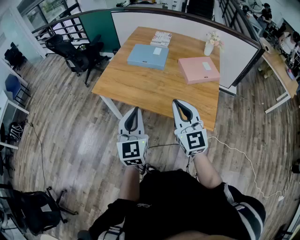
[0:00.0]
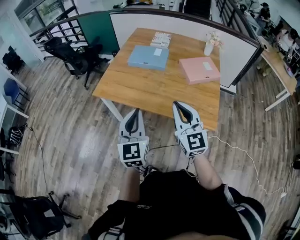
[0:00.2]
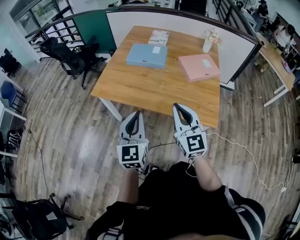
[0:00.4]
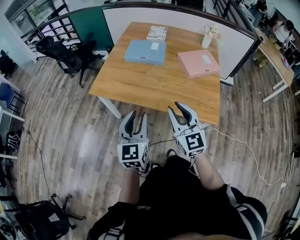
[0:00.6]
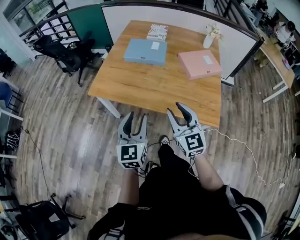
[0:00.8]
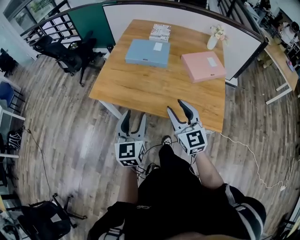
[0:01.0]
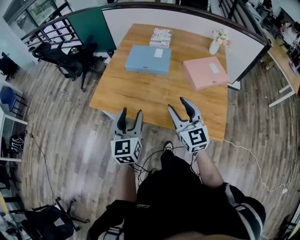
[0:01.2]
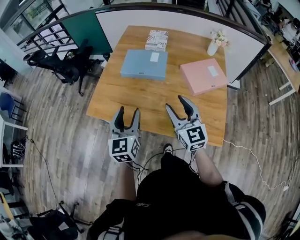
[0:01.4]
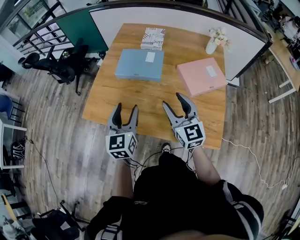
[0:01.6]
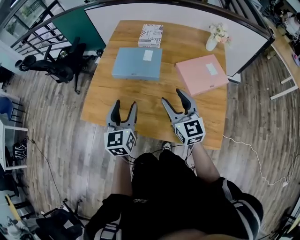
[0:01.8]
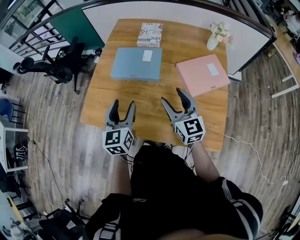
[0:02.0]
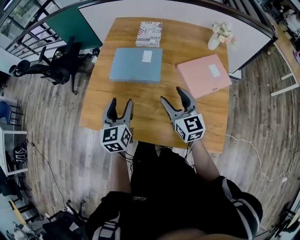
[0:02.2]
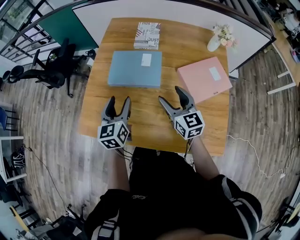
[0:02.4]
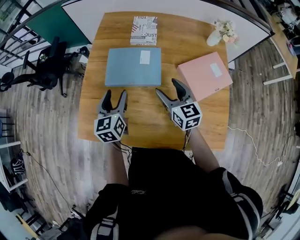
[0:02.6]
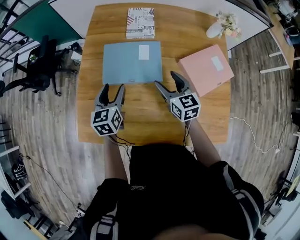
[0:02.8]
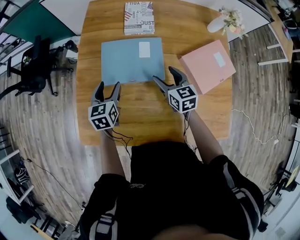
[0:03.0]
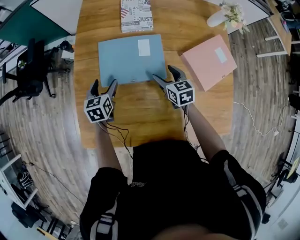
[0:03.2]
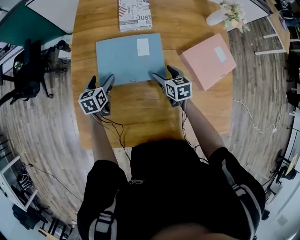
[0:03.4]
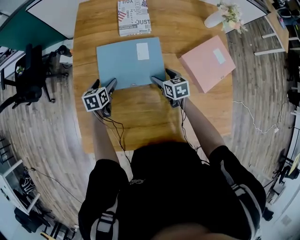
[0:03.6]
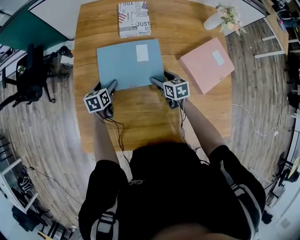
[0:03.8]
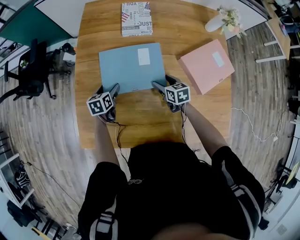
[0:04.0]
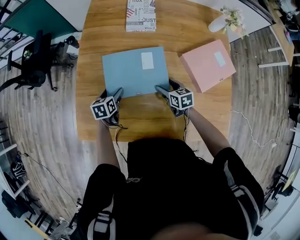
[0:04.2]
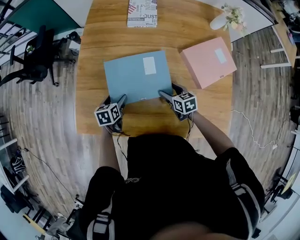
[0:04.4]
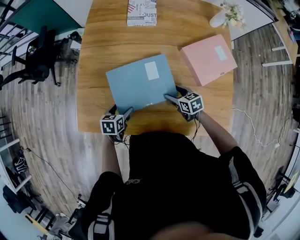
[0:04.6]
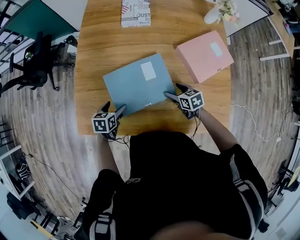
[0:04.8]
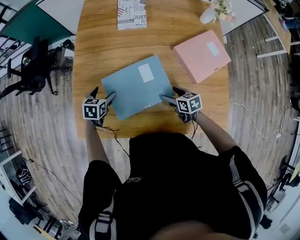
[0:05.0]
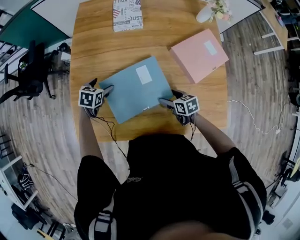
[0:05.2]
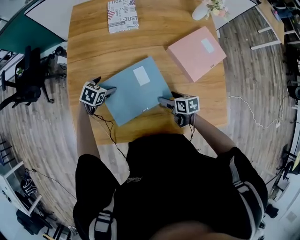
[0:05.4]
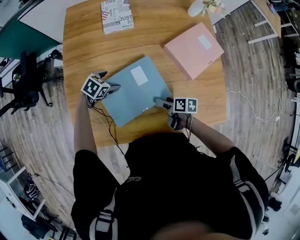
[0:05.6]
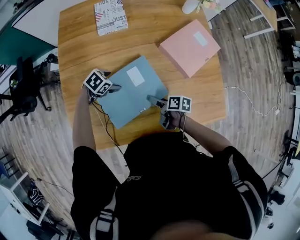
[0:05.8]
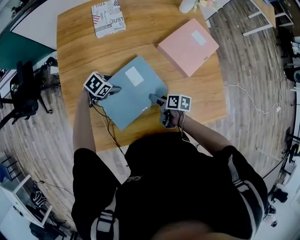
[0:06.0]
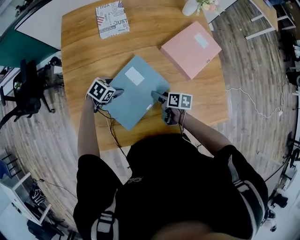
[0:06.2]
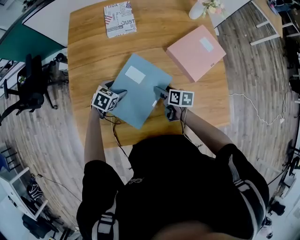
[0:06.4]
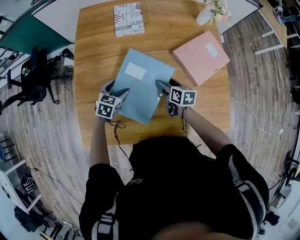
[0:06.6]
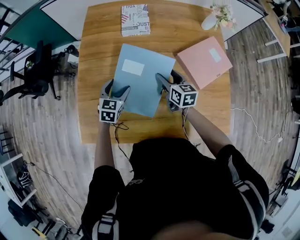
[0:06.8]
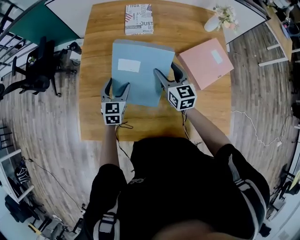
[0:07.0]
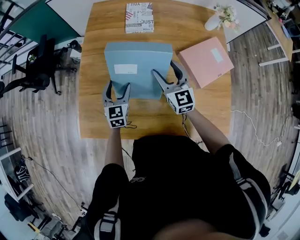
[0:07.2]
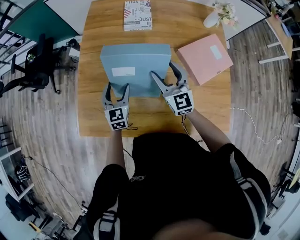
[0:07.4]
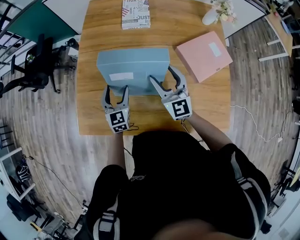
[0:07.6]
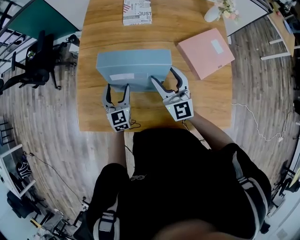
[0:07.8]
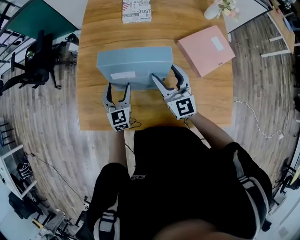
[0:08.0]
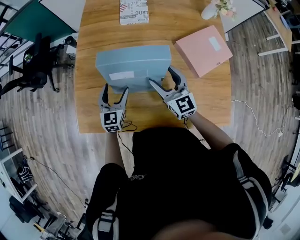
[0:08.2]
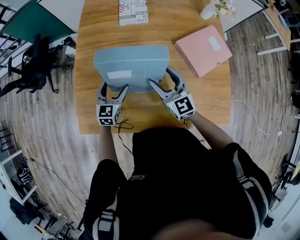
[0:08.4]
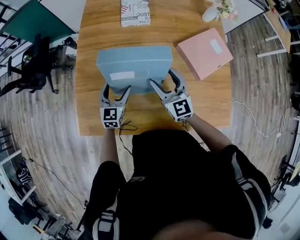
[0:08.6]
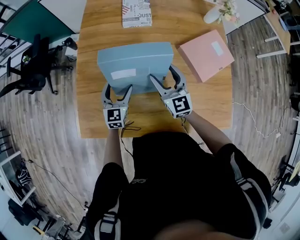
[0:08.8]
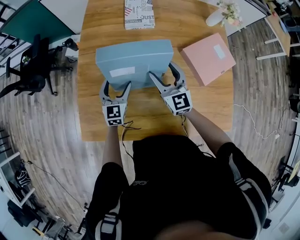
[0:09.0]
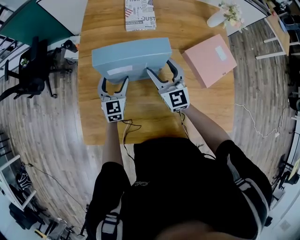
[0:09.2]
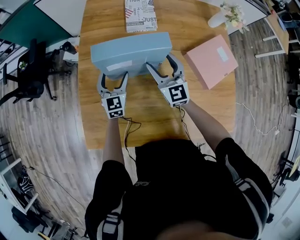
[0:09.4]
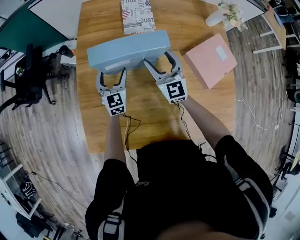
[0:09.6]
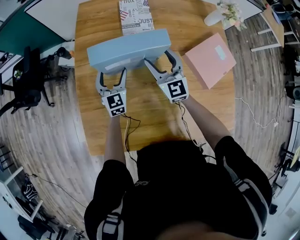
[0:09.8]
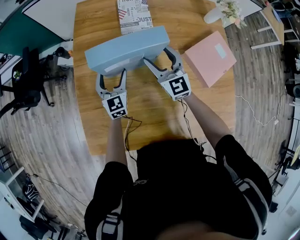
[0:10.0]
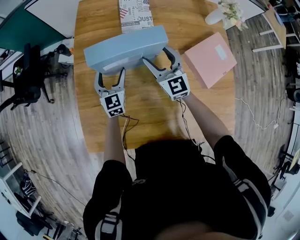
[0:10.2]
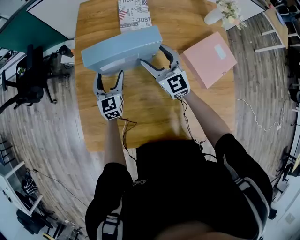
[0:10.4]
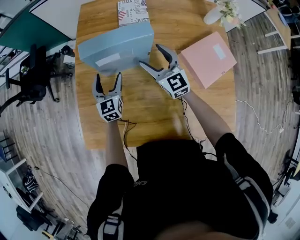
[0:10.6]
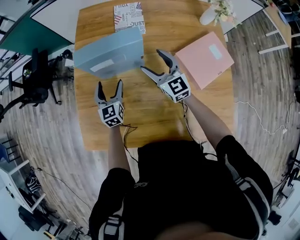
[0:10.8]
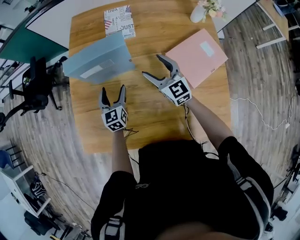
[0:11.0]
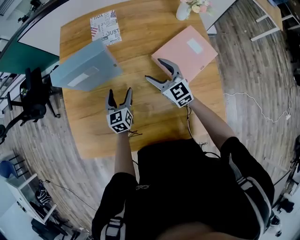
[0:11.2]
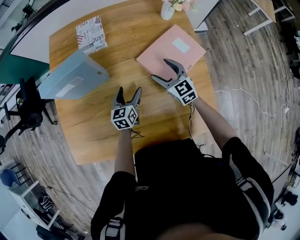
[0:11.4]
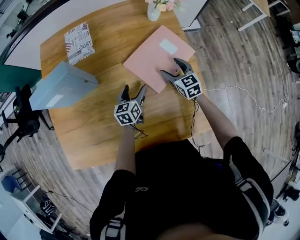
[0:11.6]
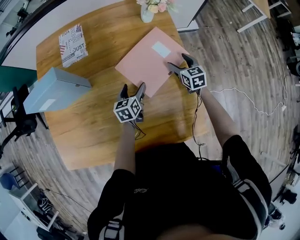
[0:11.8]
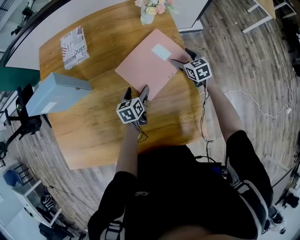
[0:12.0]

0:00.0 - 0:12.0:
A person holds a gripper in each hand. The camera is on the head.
0:00.0 - 0:01.6: Both grippers move forward, roughly 25 cm. The right gripper opens. Meanwhile the left gripper opens its fingers.
0:01.6 - 0:03.0: The two grippers go approximately 35 cm forward and downward. The right gripper rotates some 30 degrees; the left gripper turns by about 30 degrees.
0:03.0 - 0:04.4: Both grippers travel together downward and backward, roughly 15 cm. The right gripper swivels approximately 20 degrees. The left gripper turns by approximately 20 degrees.
0:04.4 - 0:06.0: The left gripper moves about 15 cm, and turns by approximately 70 degrees; the right gripper shifts by approximately 5 cm, and rolls clockwise, seen from behind, by roughly 50 degrees.
0:06.0 - 0:07.6: The left gripper heads upward, covering roughly 10 cm, and tilts its fingers approximately 40 degrees upward; the right gripper is displaced upward by some 25 cm, and rolls counterclockwise, seen from behind, by some 80 degrees.
0:07.6 - 0:09.0: The two grippers go approximately 5 cm forward.
0:09.0 - 0:10.4: The grippers both shift forward by some 10 cm.
0:10.4 - 0:12.0: The two grippers travel together, to the right, roughly 50 cm. The right gripper tilts its fingers about 30 degrees downward; the left gripper changes its angle by approximately 40 degrees.

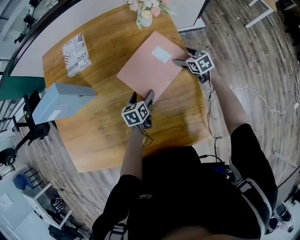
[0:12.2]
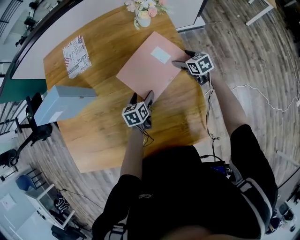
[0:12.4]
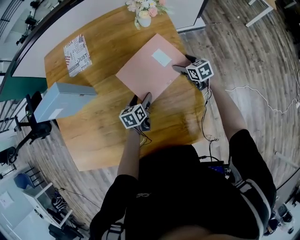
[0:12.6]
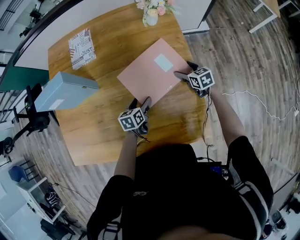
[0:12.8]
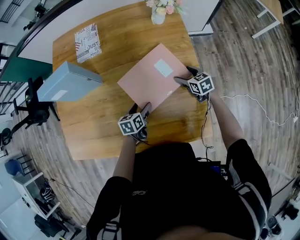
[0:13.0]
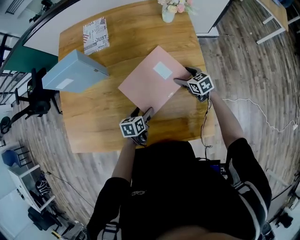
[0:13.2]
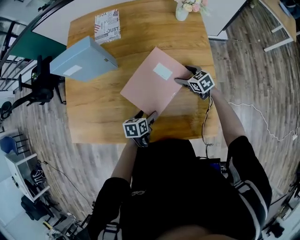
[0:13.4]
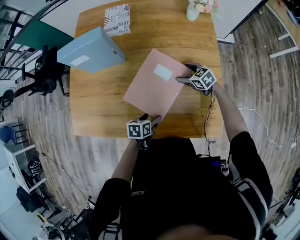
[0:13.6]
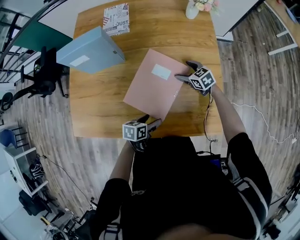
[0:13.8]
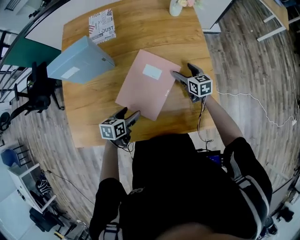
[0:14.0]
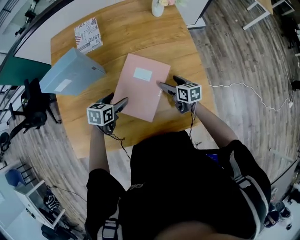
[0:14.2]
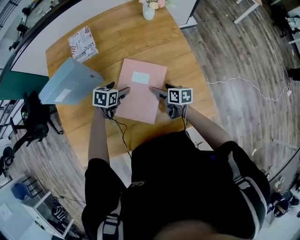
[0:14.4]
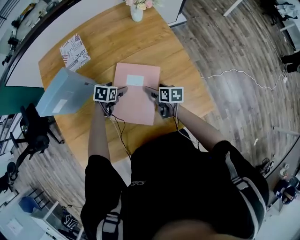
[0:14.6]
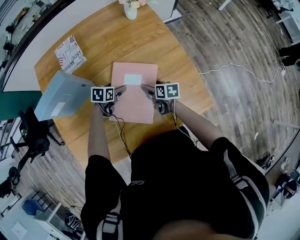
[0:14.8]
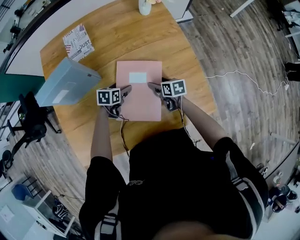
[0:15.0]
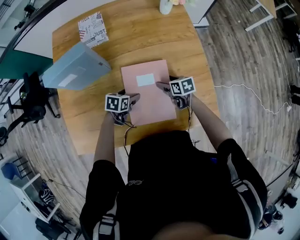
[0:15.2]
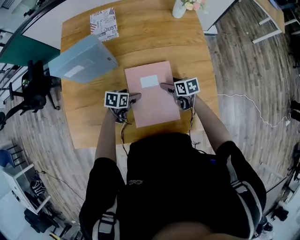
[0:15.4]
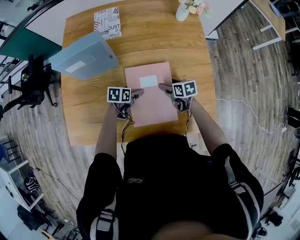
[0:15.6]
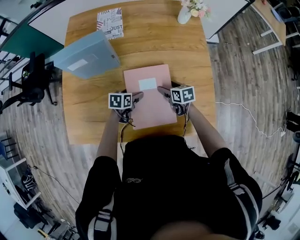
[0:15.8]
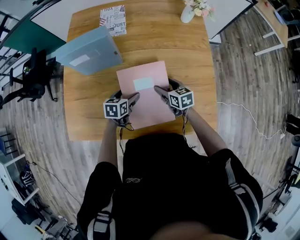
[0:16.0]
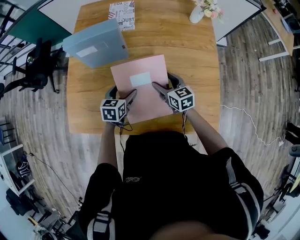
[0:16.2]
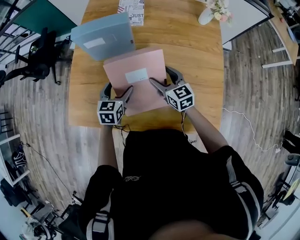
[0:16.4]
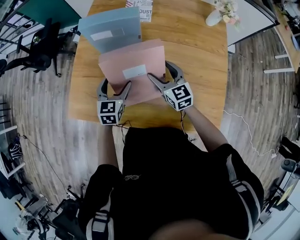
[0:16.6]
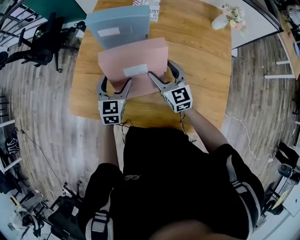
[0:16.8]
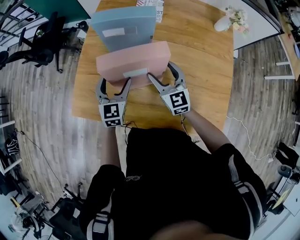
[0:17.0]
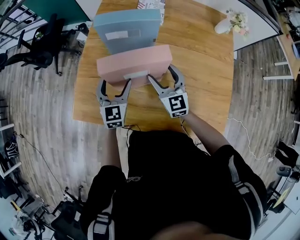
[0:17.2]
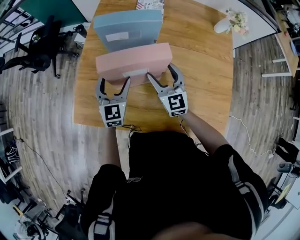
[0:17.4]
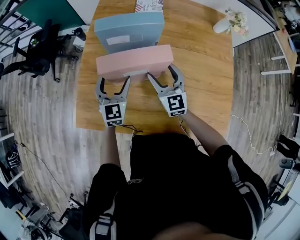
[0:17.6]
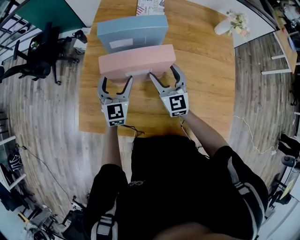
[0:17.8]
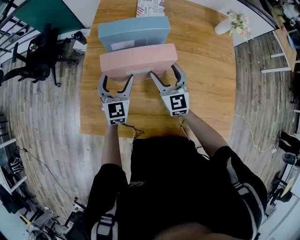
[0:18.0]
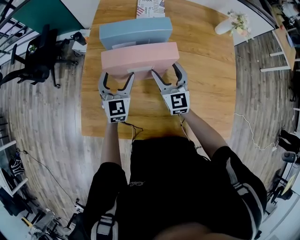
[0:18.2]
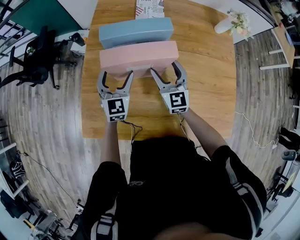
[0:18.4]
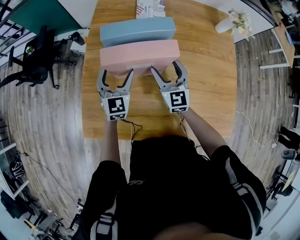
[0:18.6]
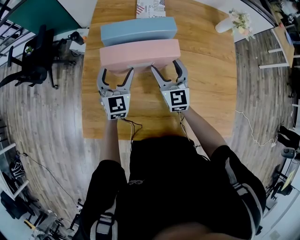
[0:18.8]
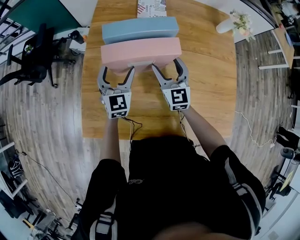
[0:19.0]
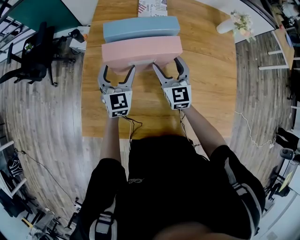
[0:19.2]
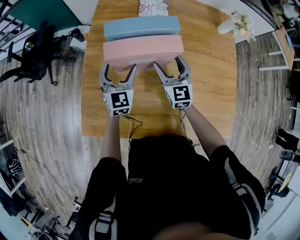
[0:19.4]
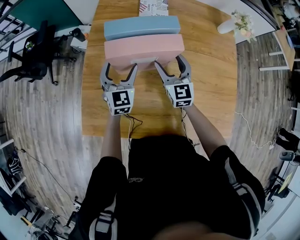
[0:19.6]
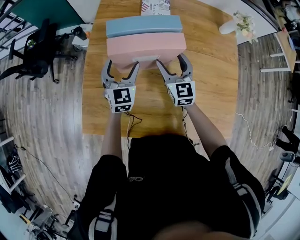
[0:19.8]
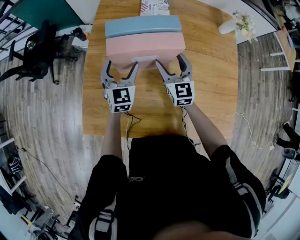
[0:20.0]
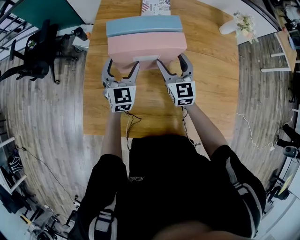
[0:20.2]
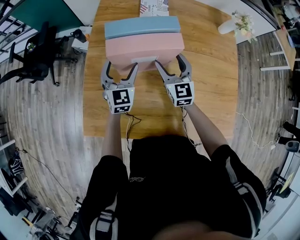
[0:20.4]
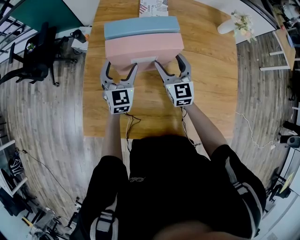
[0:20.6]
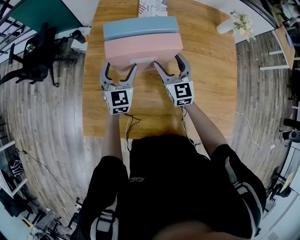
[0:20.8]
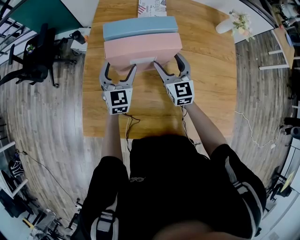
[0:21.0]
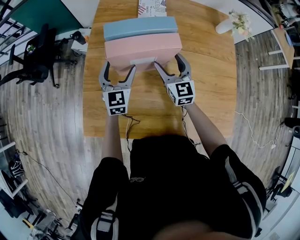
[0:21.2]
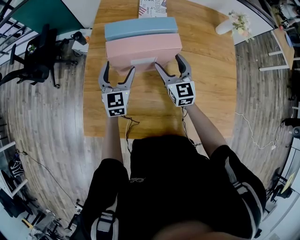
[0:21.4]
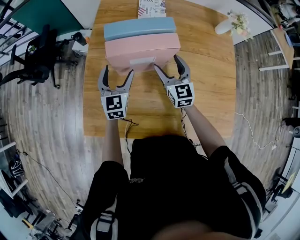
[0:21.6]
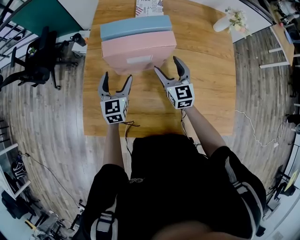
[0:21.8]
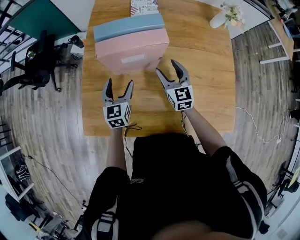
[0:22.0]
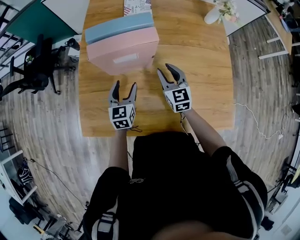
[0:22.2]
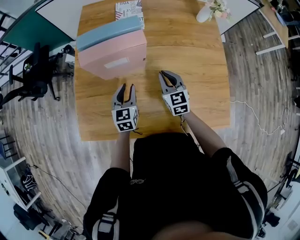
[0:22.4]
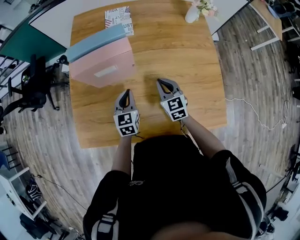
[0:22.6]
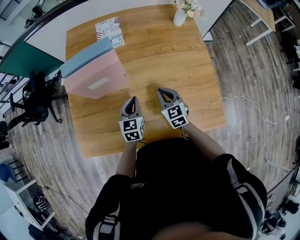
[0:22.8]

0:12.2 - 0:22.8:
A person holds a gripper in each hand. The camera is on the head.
0:12.2 - 0:13.8: The right gripper is displaced to the left and backward by approximately 25 cm, and turns by approximately 20 degrees, while the left gripper shifts about 25 cm backward and to the left, and swivels some 20 degrees.
0:13.8 - 0:15.2: The right gripper shifts approximately 5 cm backward, and changes its angle by approximately 40 degrees. Meanwhile the left gripper travels forward and to the left by about 15 cm, and swivels roughly 20 degrees.
0:15.2 - 0:16.8: The right gripper ends up some 25 cm from where it was, and tips its fingers upward by about 30 degrees. The left gripper changes place by about 25 cm, and tips its fingers upward by about 30 degrees.
0:16.8 - 0:18.2: The two grippers go about 10 cm forward and to the left.
0:18.2 - 0:19.8: The grippers make only small movements.
0:19.8 - 0:21.2: Neither gripper changes place.
0:21.2 - 0:22.8: The left gripper is displaced to the right and backward by about 25 cm, rotates roughly 20 degrees, and closes its fingers; the right gripper goes about 20 cm to the right, backward and downward, and closes its fingers.

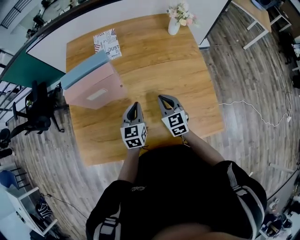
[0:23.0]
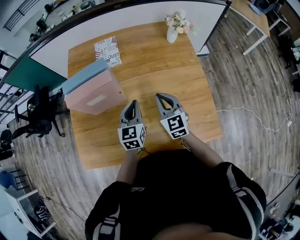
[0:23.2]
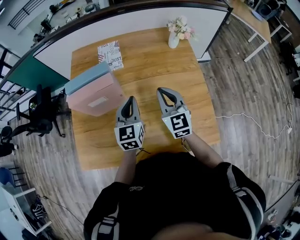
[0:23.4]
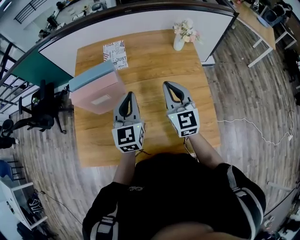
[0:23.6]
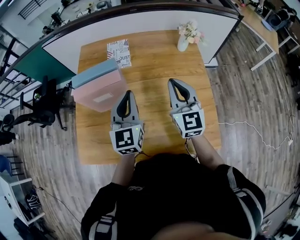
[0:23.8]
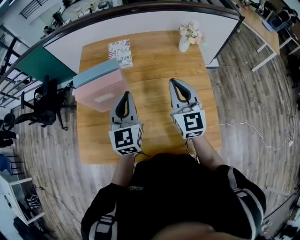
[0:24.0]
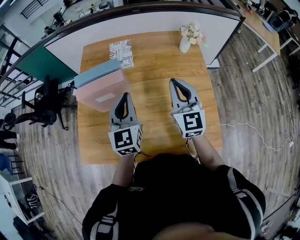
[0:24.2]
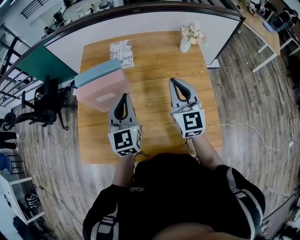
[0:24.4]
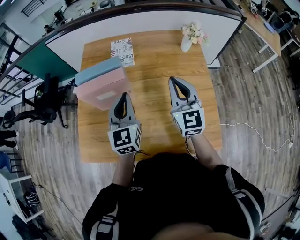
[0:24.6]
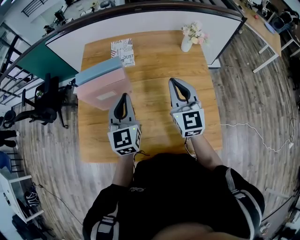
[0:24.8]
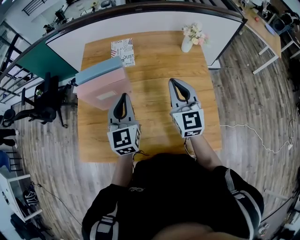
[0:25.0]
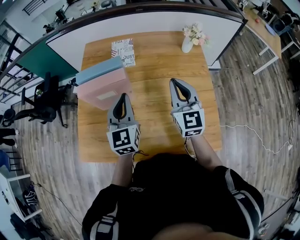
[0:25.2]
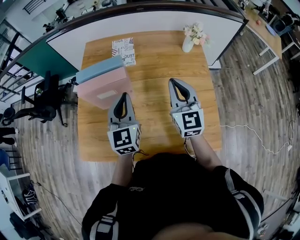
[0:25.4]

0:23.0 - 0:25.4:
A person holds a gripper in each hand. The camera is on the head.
0:23.0 - 0:24.2: Both grippers move upward, approximately 20 cm. The left gripper turns by about 20 degrees. The right gripper swivels about 20 degrees.
0:24.2 - 0:25.4: The grippers stay close to where they were, moving slightly.
